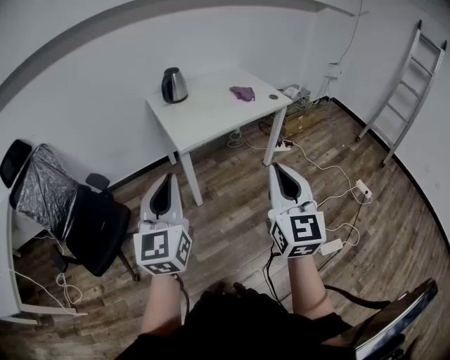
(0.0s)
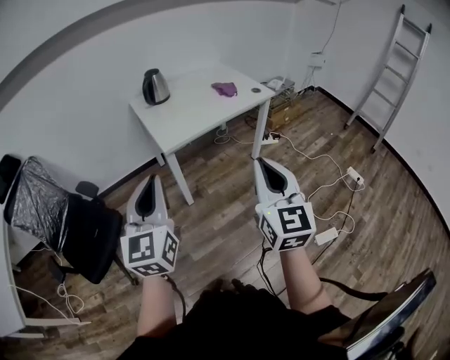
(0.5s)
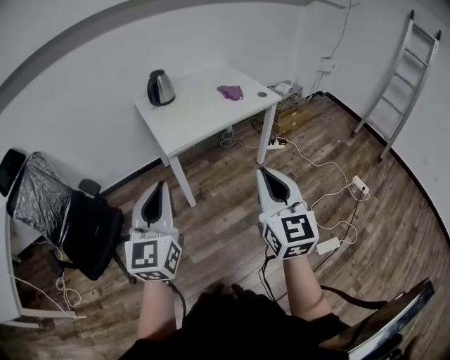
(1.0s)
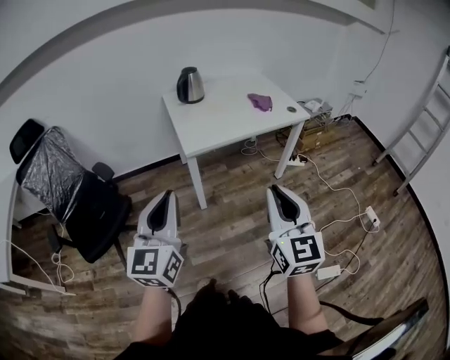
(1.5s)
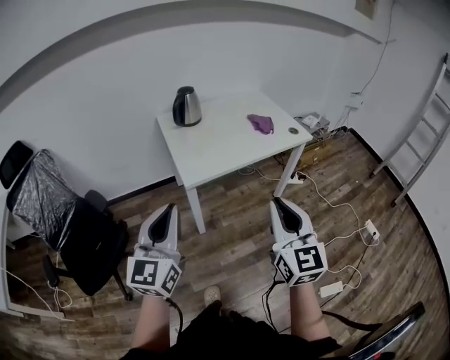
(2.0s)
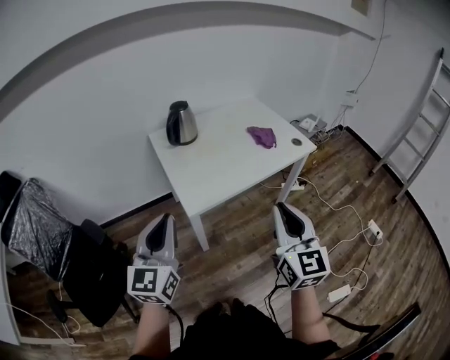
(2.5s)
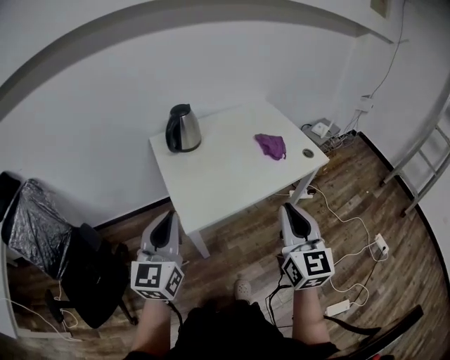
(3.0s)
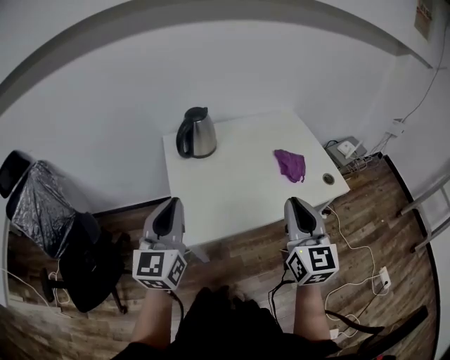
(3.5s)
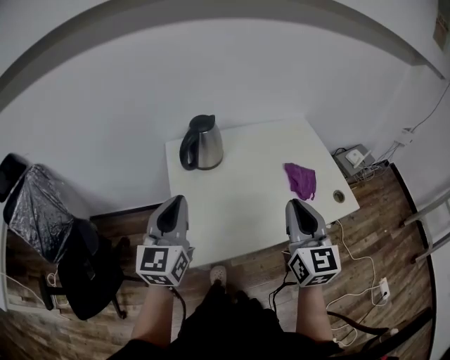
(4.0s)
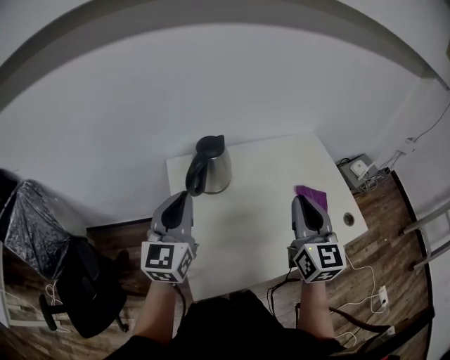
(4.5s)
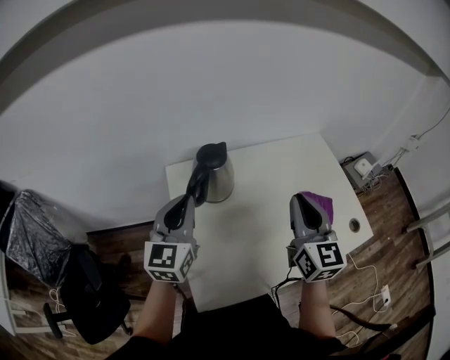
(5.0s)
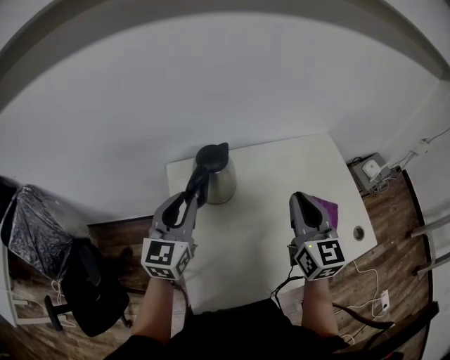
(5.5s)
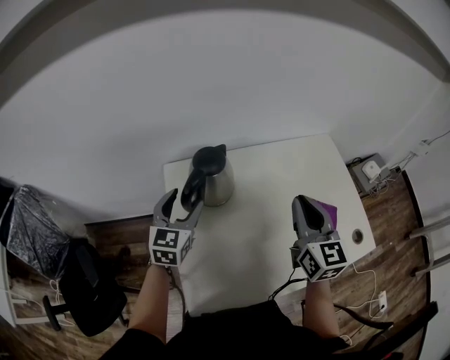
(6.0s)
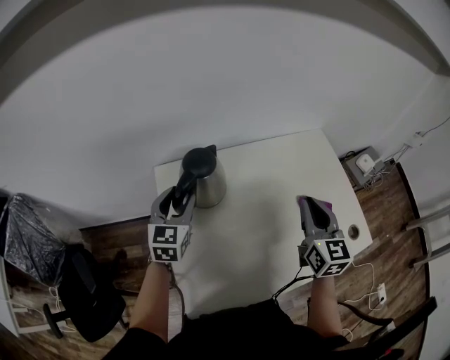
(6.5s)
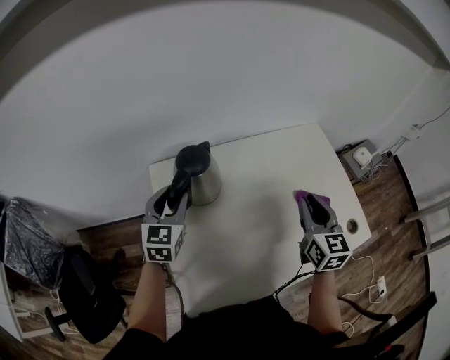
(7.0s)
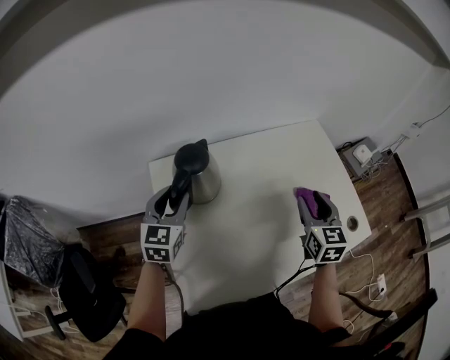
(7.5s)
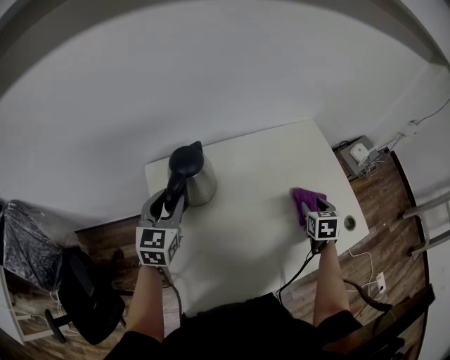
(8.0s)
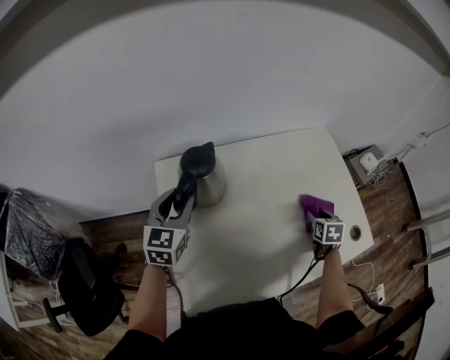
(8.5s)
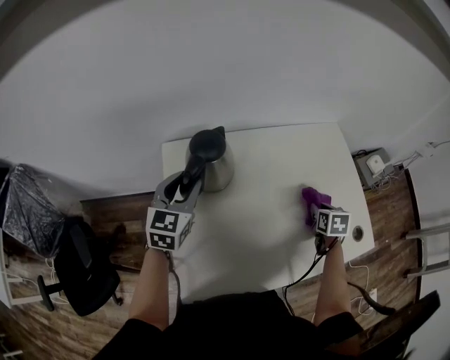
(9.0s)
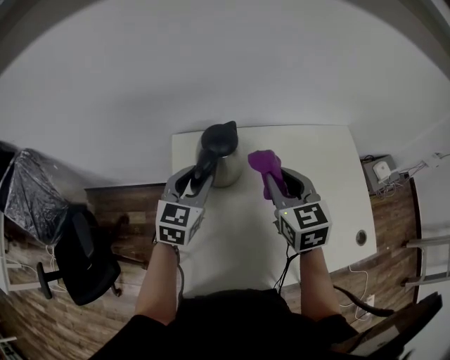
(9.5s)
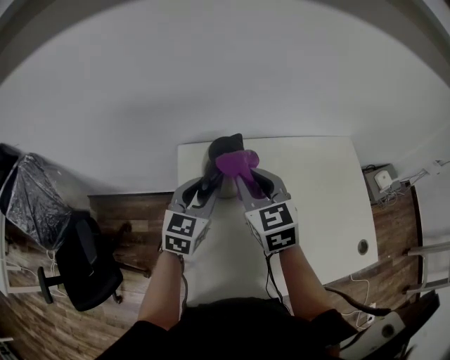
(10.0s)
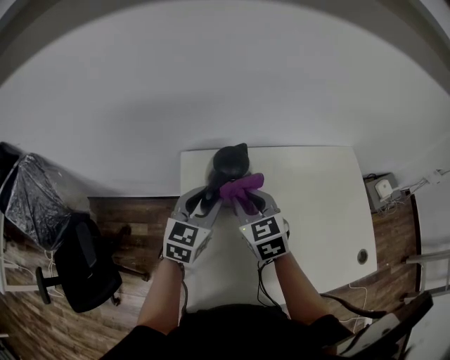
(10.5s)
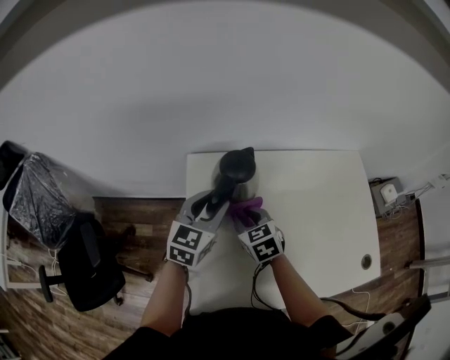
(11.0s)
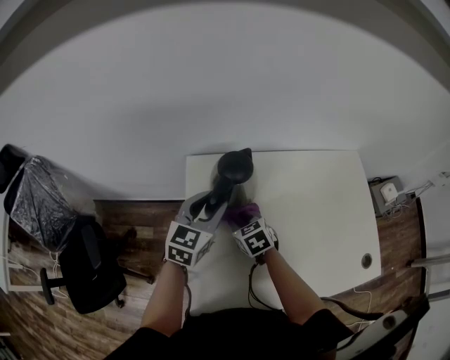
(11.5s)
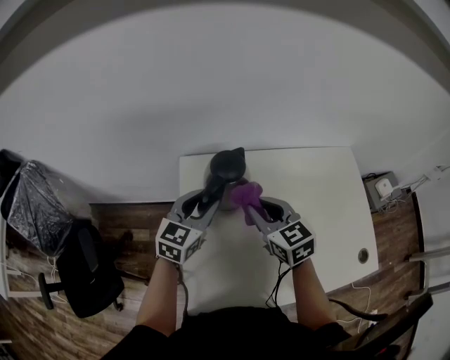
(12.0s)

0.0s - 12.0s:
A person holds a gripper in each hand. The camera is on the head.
0.0s - 2.0s: The grippers both shift forward by some 10 cm.
2.0s - 4.0s: The grippers both shift forward by approximately 35 cm.
4.0s - 6.0s: The left gripper travels forward and downward by approximately 25 cm, and opens its fingers; the right gripper heads forward, covering approximately 20 cm.
6.0s - 8.0s: The right gripper is displaced downward and to the right by roughly 25 cm, points its fingers approximately 40 degrees further downward, and opens up.
8.0s - 10.0s: The right gripper travels to the left and upward by approximately 40 cm, changes its angle by about 50 degrees, and closes up.
10.0s - 12.0s: The right gripper travels downward and back again, approximately 20 cm each way.

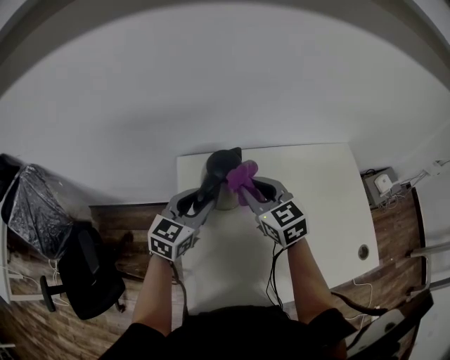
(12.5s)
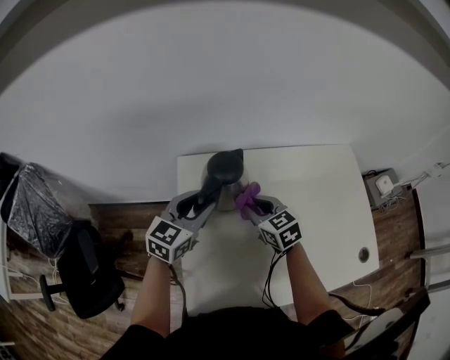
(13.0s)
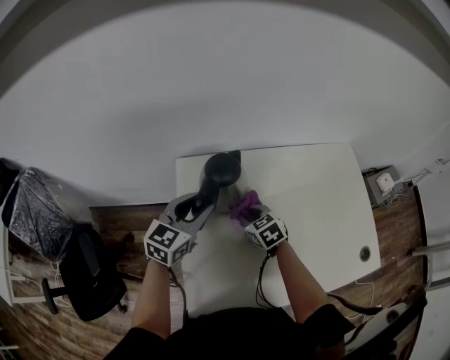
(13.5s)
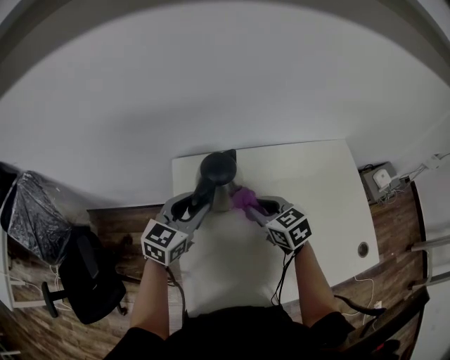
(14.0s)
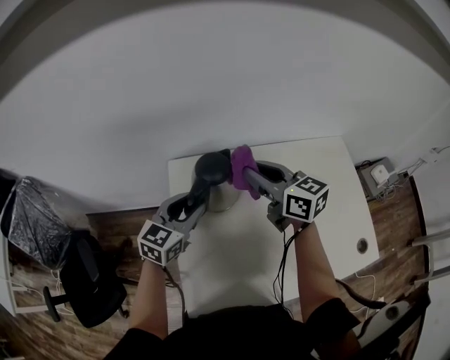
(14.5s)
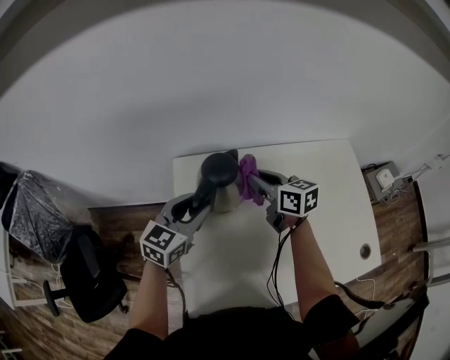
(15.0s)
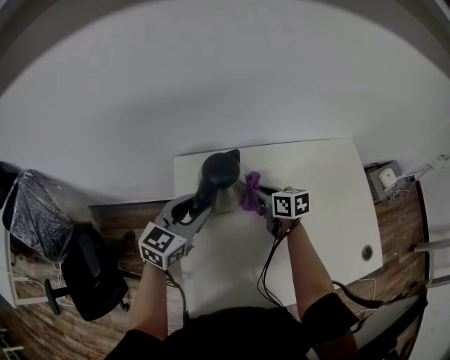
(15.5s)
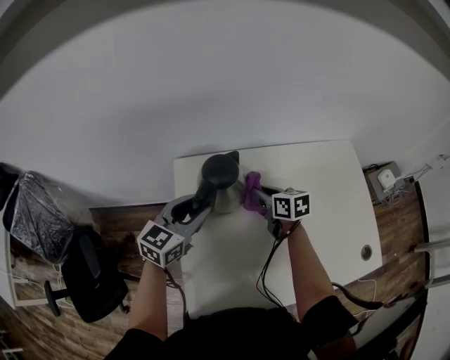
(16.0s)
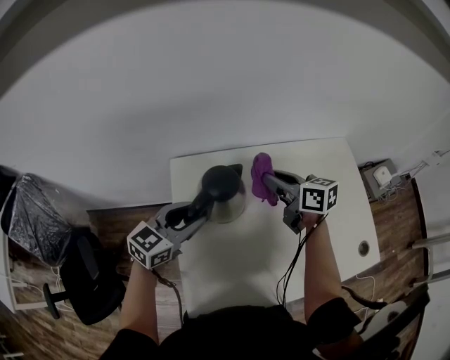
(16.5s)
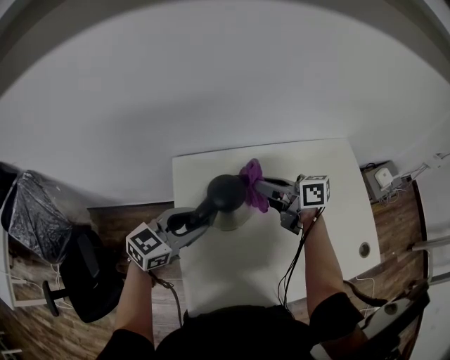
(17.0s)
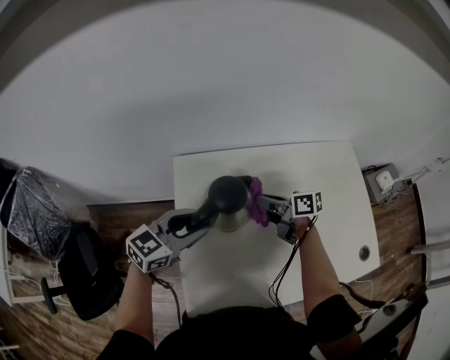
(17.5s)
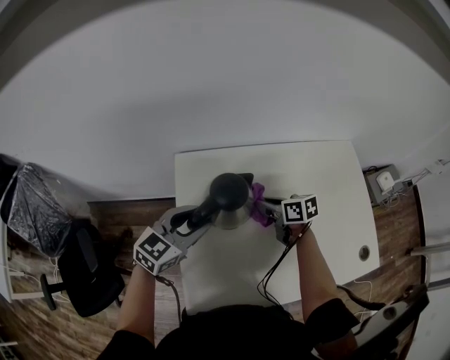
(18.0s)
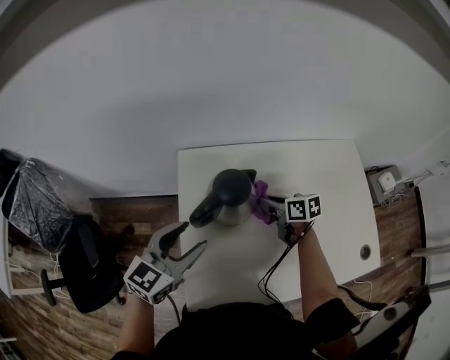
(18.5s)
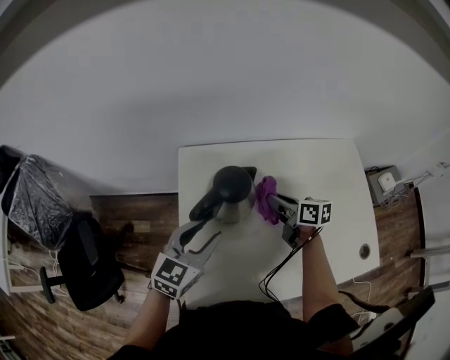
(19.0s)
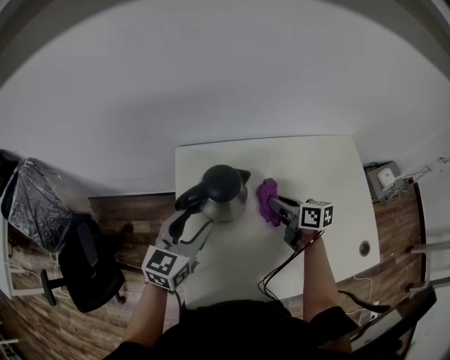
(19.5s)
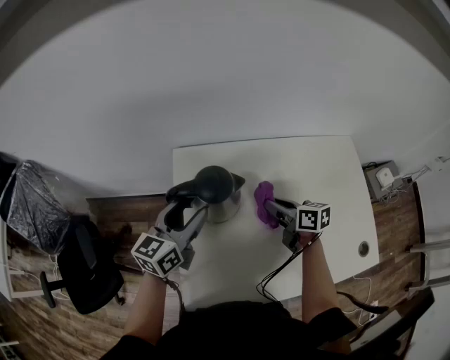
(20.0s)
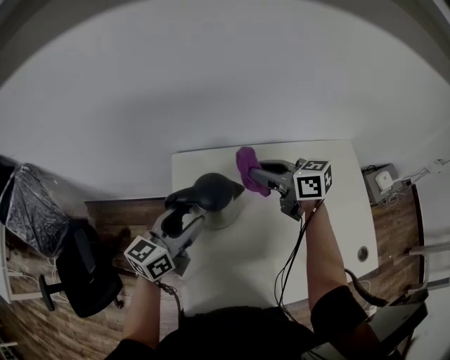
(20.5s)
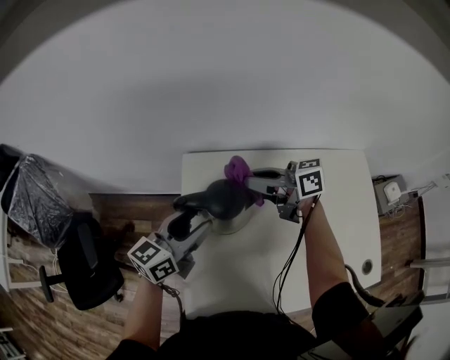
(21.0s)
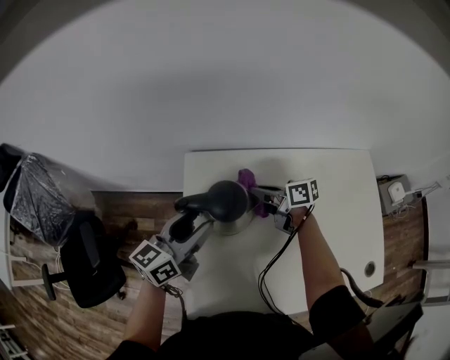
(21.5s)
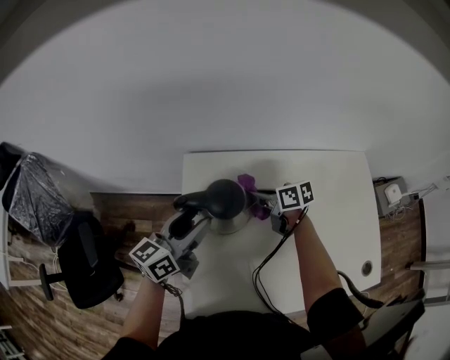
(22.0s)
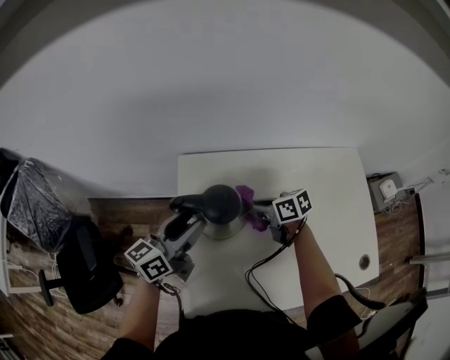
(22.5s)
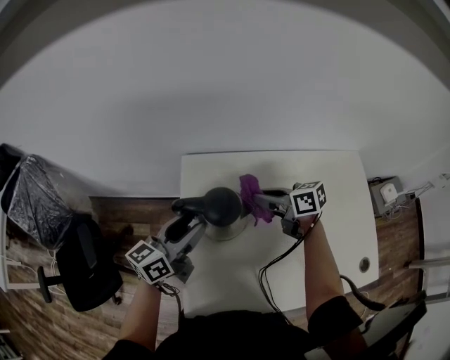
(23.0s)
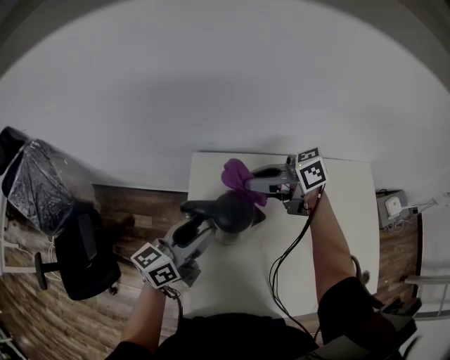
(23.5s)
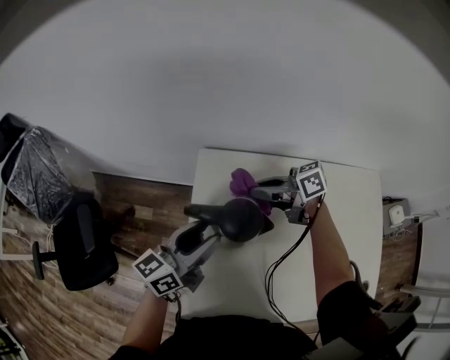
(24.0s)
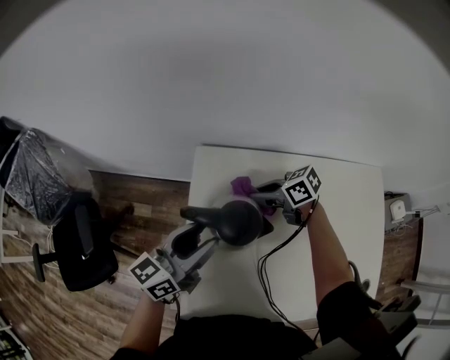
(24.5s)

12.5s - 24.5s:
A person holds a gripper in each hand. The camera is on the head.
12.5s - 14.5s: The right gripper reaches about 20 cm downward, then returns, and turns by approximately 30 degrees.
14.5s - 16.5s: The right gripper heads downward and to the right, covering roughly 10 cm.
16.5s - 18.5s: The left gripper heads backward, covering some 10 cm; the right gripper shifts approximately 15 cm downward, and turns by some 20 degrees.
18.5s - 20.5s: The left gripper heads forward, covering approximately 5 cm, and changes its angle by roughly 20 degrees. The right gripper shifts approximately 15 cm upward, and turns by roughly 30 degrees.
20.5s - 22.5s: The right gripper shifts about 15 cm downward, and turns by about 20 degrees.
22.5s - 24.5s: The right gripper reaches about 15 cm upward, then returns, and rotates about 20 degrees.

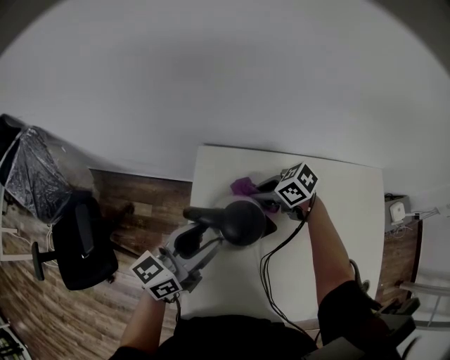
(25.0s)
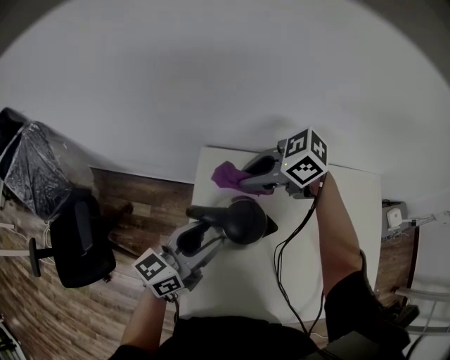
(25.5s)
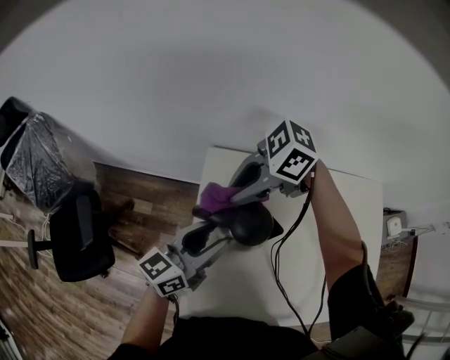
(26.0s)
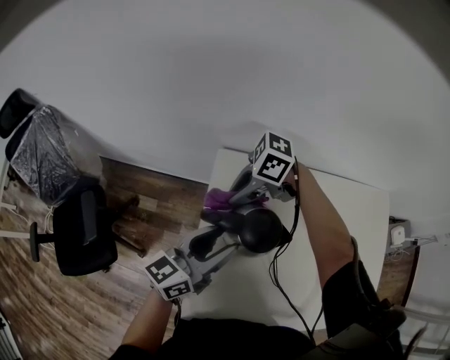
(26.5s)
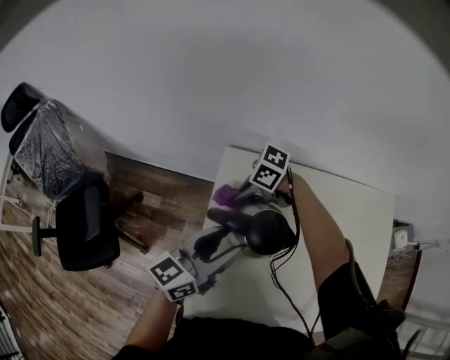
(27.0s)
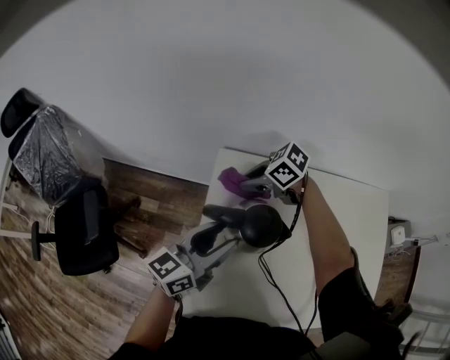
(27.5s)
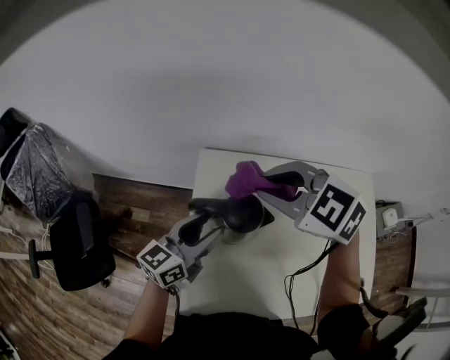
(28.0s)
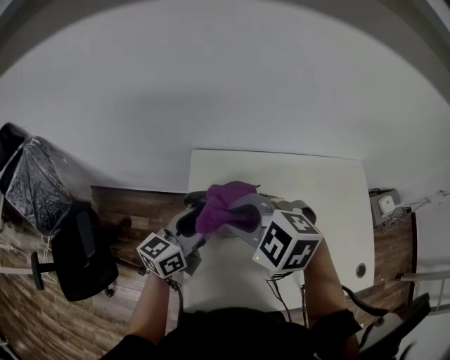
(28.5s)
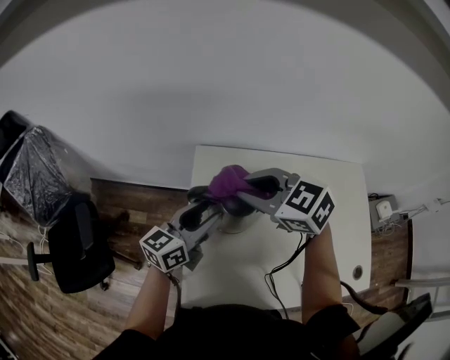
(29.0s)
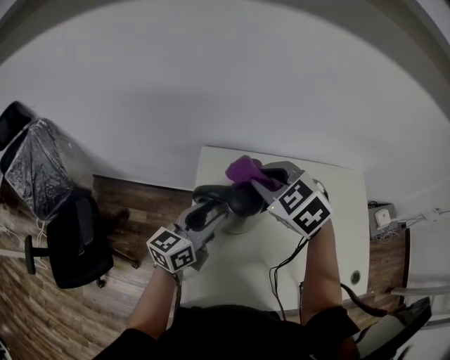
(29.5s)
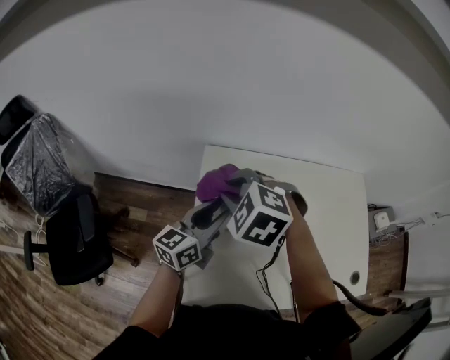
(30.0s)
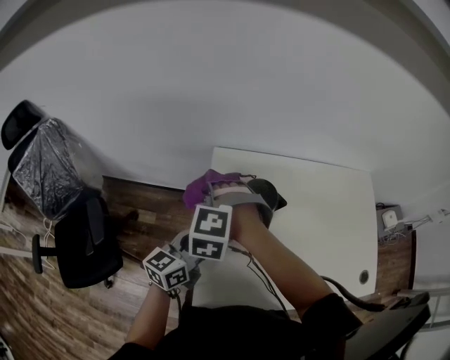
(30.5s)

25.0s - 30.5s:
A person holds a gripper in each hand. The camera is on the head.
25.0s - 27.0s: The right gripper travels upward and back again, roughly 15 cm each way, and changes its angle by roughly 30 degrees.
27.0s - 28.5s: The right gripper heads upward, covering approximately 20 cm, and turns by some 60 degrees.
28.5s - 30.5s: The right gripper heads to the left and downward, covering roughly 10 cm, and rotates approximately 30 degrees. Meanwhile the left gripper shifts roughly 5 cm backward, and closes its fingers.
